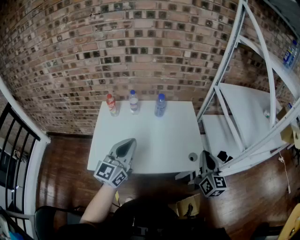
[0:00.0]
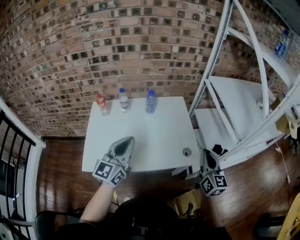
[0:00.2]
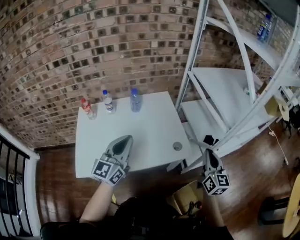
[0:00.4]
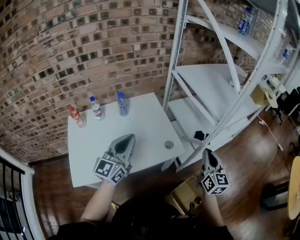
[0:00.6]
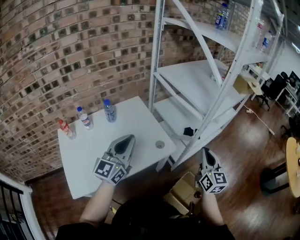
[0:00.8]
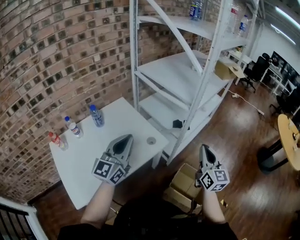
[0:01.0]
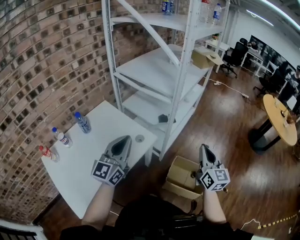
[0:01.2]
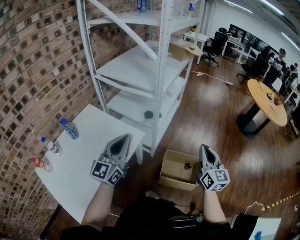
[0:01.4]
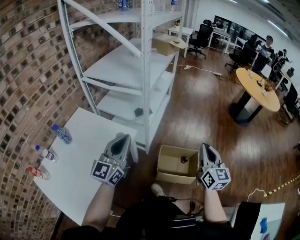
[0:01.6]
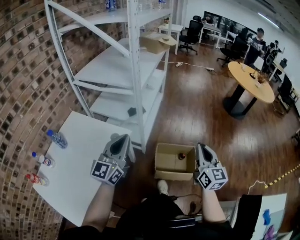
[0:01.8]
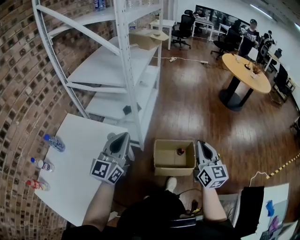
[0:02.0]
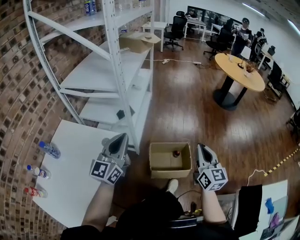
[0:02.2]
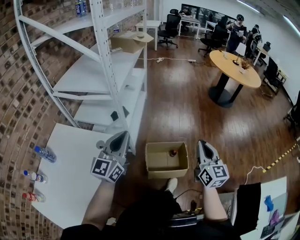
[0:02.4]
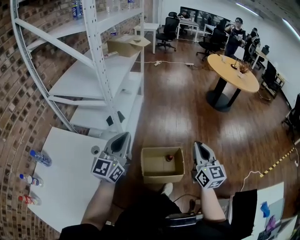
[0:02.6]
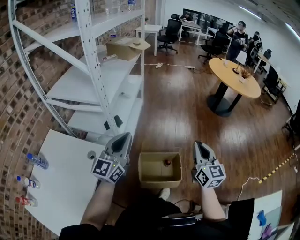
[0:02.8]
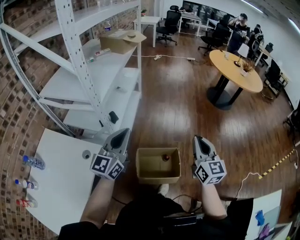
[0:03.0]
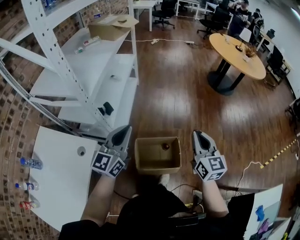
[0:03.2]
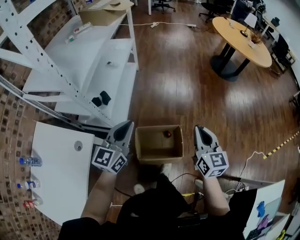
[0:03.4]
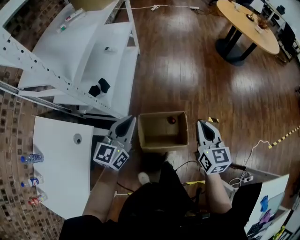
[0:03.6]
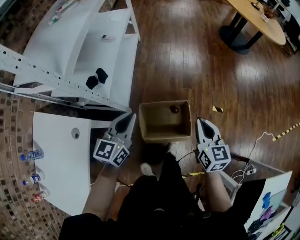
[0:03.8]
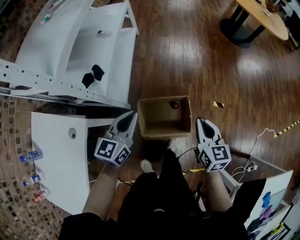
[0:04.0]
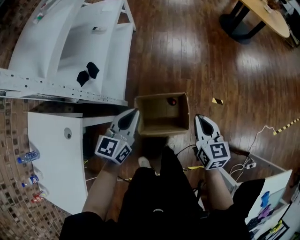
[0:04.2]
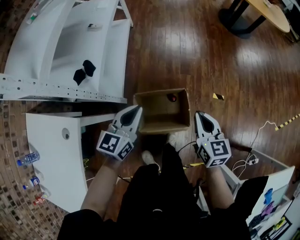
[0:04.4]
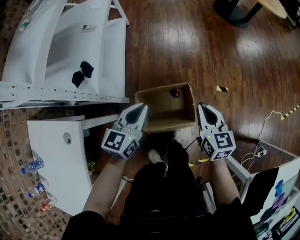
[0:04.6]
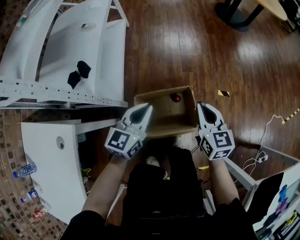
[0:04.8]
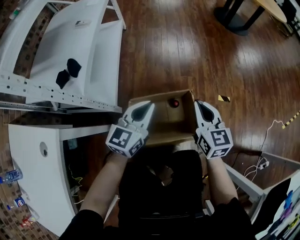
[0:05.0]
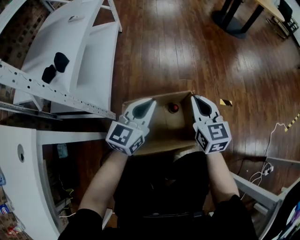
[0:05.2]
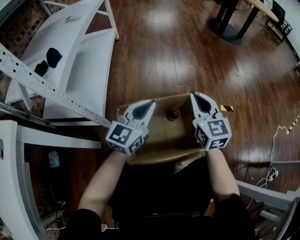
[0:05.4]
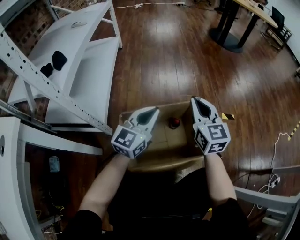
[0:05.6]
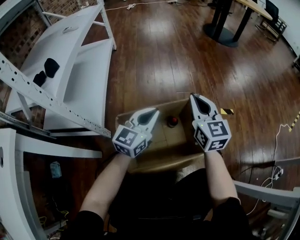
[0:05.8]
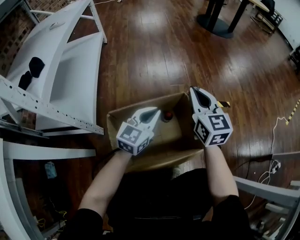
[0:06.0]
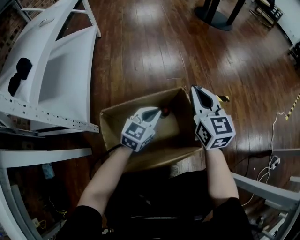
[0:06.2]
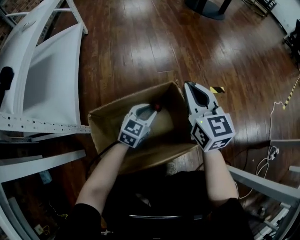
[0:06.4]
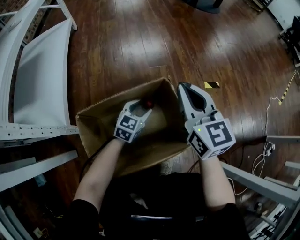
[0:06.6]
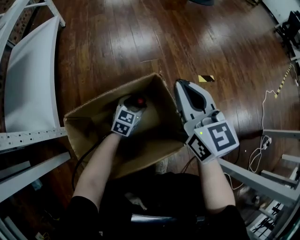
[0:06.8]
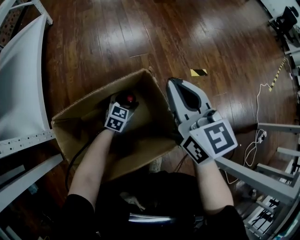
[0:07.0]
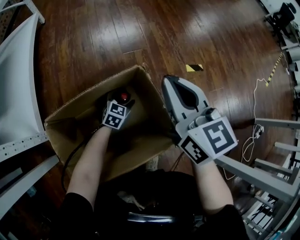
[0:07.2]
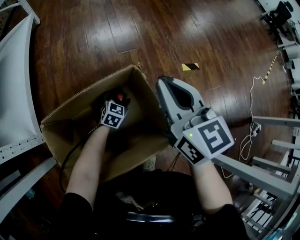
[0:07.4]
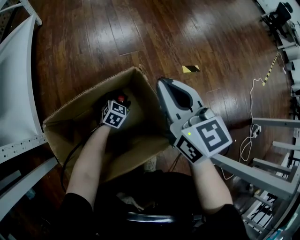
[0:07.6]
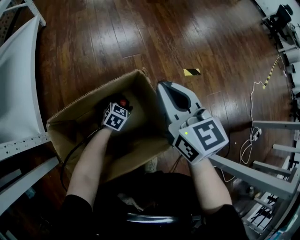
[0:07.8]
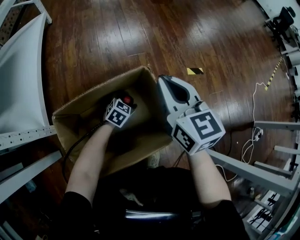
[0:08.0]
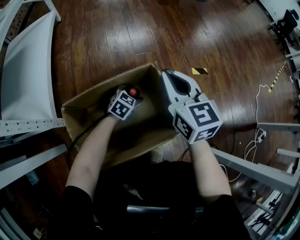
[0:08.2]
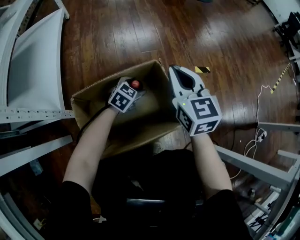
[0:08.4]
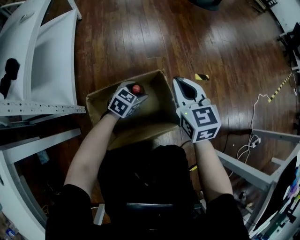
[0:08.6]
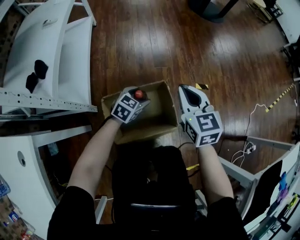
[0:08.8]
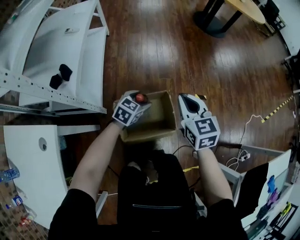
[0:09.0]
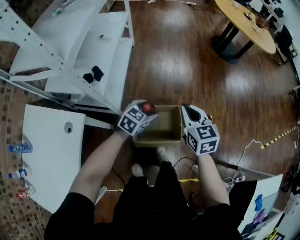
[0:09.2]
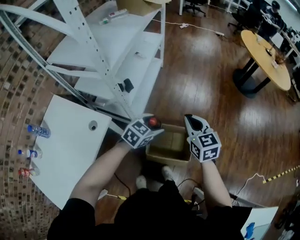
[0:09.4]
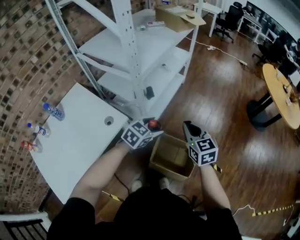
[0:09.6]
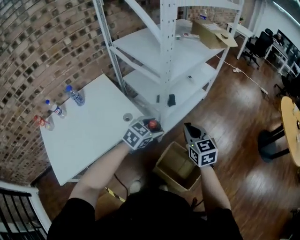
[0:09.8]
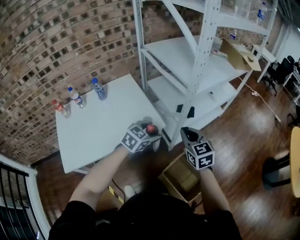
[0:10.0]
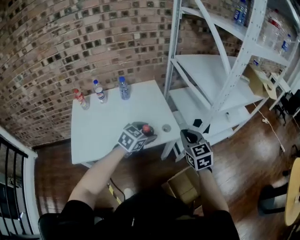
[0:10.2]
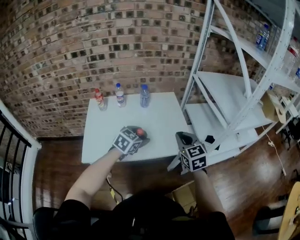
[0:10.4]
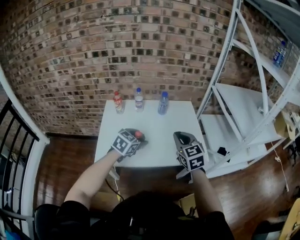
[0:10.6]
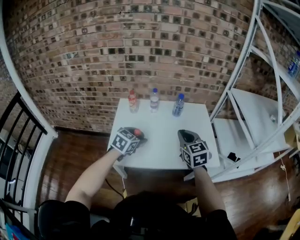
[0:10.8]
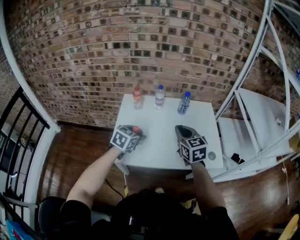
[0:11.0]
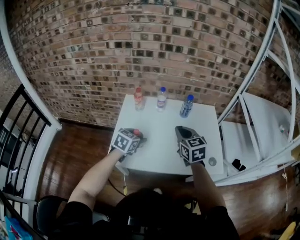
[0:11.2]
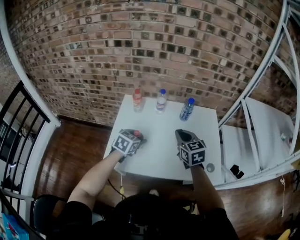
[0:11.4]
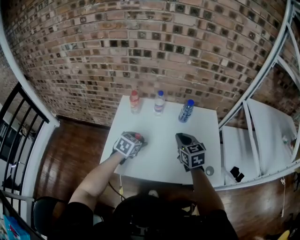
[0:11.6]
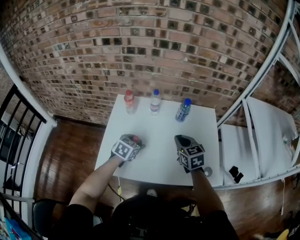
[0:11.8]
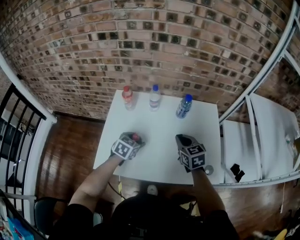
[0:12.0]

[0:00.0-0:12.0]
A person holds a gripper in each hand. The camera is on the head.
0:00.0 to 0:01.6: The left gripper ends up about 30 cm from where it was, and swivels some 60 degrees; the right gripper changes place by approximately 40 cm, and changes its angle by some 60 degrees.
0:01.6 to 0:03.0: The left gripper goes some 25 cm forward and to the right; the right gripper is displaced to the right and forward by about 20 cm.
0:03.0 to 0:04.4: The right gripper shifts some 25 cm downward, and changes its angle by approximately 30 degrees, while the left gripper goes roughly 30 cm downward and to the right, and rotates approximately 30 degrees.
0:04.4 to 0:06.0: Both grippers move downward, about 35 cm. The left gripper rotates roughly 20 degrees; the right gripper changes its angle by approximately 20 degrees.
0:06.0 to 0:07.6: The right gripper travels downward and to the right by about 10 cm, while the left gripper travels downward by approximately 35 cm, points its fingers about 30 degrees further downward, and opens up.
0:07.6 to 0:09.0: The left gripper is displaced upward by approximately 50 cm. Meanwhile the right gripper is displaced upward by roughly 35 cm.
0:09.0 to 0:10.4: The two grippers travel together, approximately 60 cm. The left gripper turns by about 80 degrees, while the right gripper swivels roughly 90 degrees.
0:10.4 to 0:12.0: The left gripper is displaced to the left, forward and downward by about 30 cm, and turns by some 30 degrees. Meanwhile the right gripper moves forward, to the left and downward, approximately 30 cm, and swivels about 20 degrees.

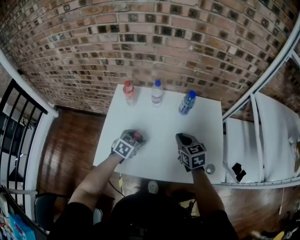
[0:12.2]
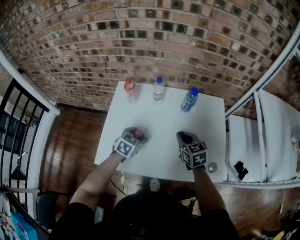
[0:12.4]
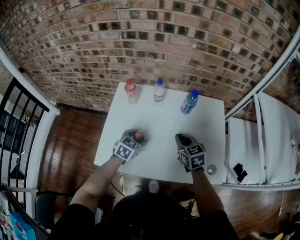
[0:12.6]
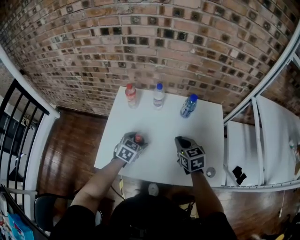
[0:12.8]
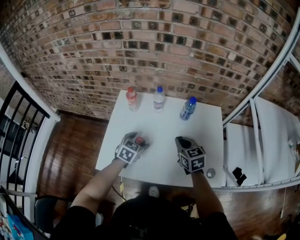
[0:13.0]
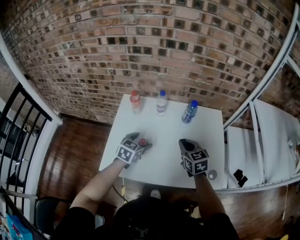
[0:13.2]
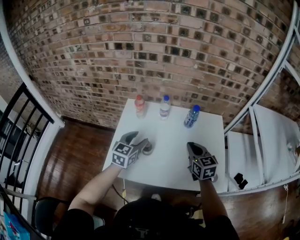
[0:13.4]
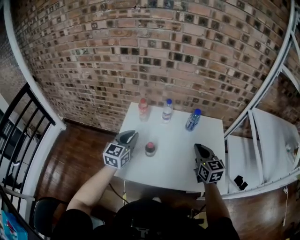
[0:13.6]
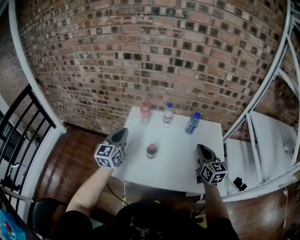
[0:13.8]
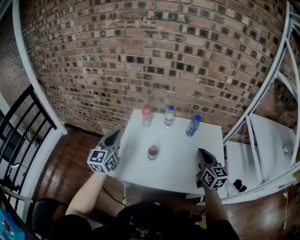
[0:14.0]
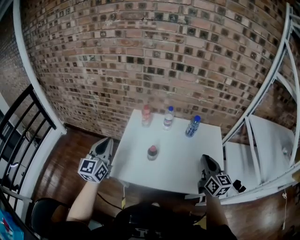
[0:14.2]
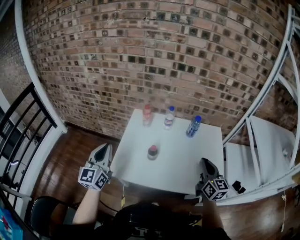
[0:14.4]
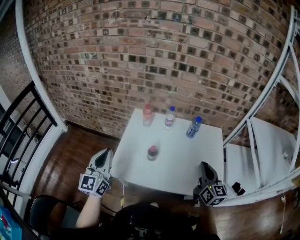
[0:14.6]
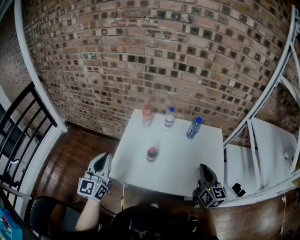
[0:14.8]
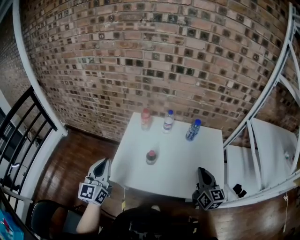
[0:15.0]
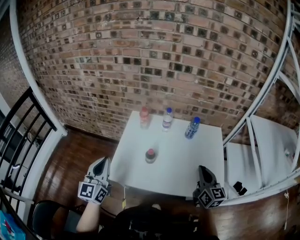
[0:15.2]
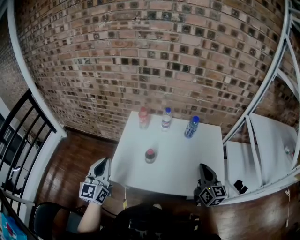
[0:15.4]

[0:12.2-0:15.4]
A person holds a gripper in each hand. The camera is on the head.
0:12.2 to 0:13.8: The left gripper shifts approximately 30 cm upward and to the left, tips its fingers upward by some 40 degrees, and closes up; the right gripper is displaced upward and backward by about 15 cm, and turns by about 20 degrees.
0:13.8 to 0:15.4: The right gripper is displaced backward by about 5 cm, while the left gripper moves backward, some 15 cm.

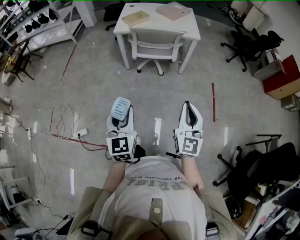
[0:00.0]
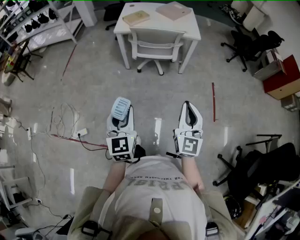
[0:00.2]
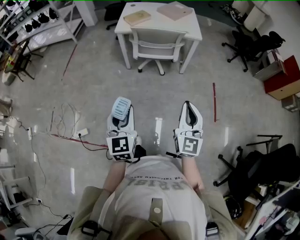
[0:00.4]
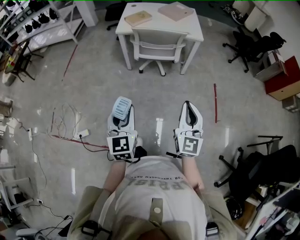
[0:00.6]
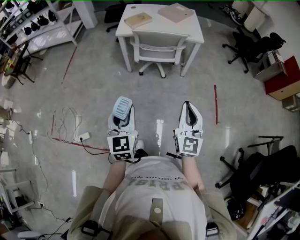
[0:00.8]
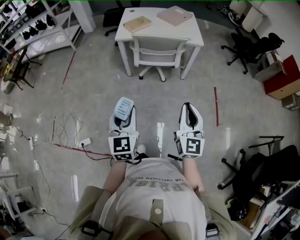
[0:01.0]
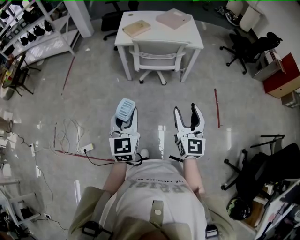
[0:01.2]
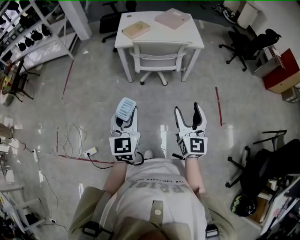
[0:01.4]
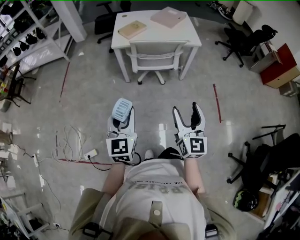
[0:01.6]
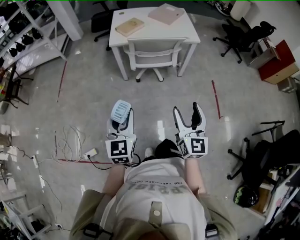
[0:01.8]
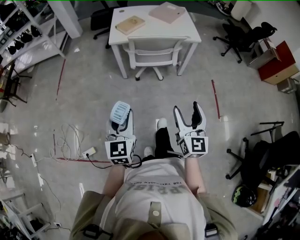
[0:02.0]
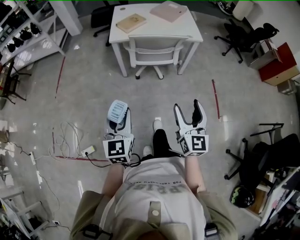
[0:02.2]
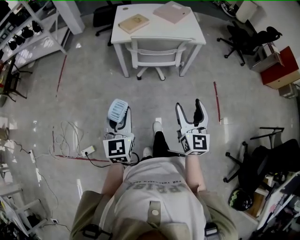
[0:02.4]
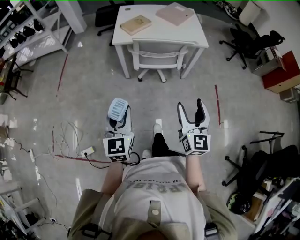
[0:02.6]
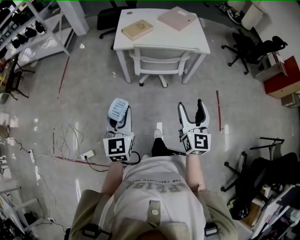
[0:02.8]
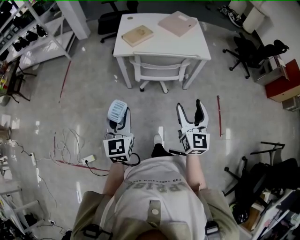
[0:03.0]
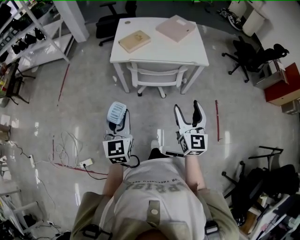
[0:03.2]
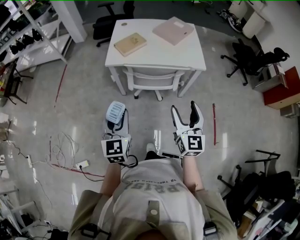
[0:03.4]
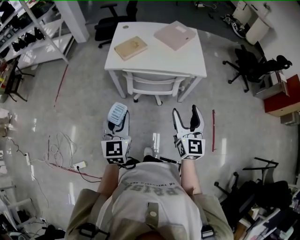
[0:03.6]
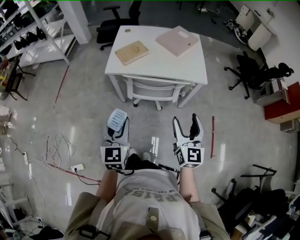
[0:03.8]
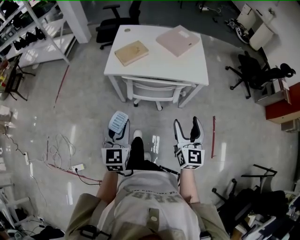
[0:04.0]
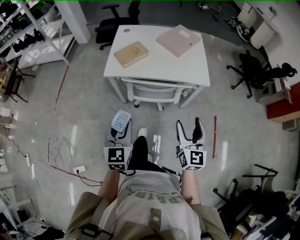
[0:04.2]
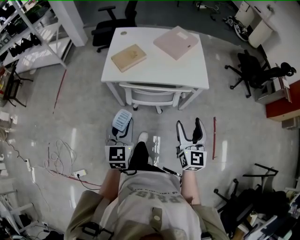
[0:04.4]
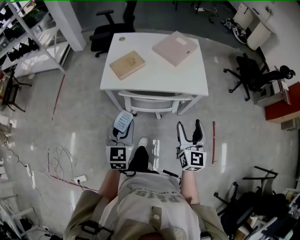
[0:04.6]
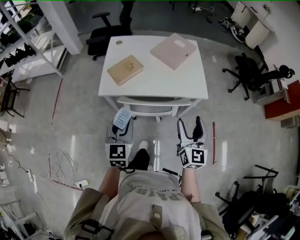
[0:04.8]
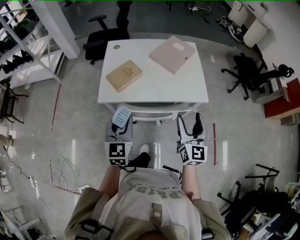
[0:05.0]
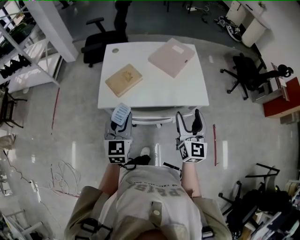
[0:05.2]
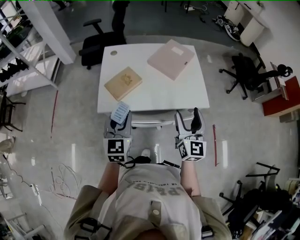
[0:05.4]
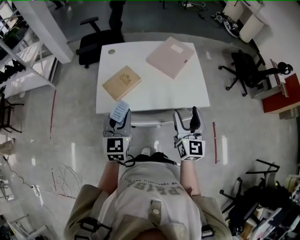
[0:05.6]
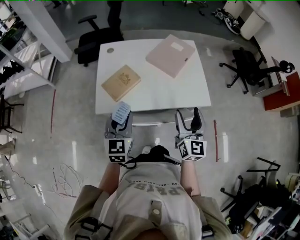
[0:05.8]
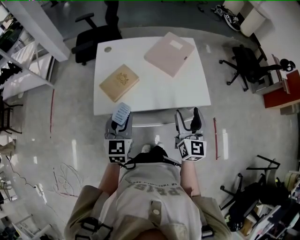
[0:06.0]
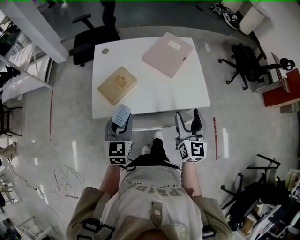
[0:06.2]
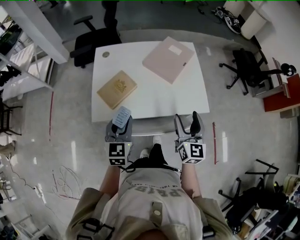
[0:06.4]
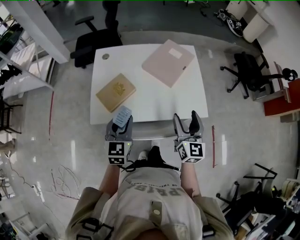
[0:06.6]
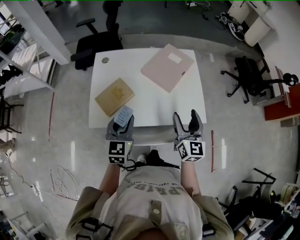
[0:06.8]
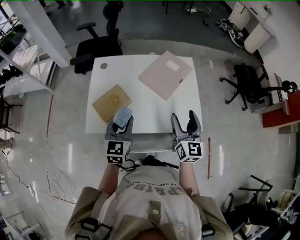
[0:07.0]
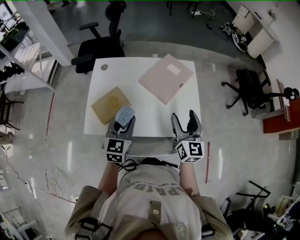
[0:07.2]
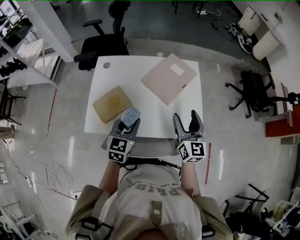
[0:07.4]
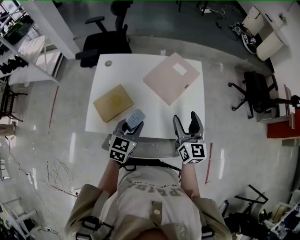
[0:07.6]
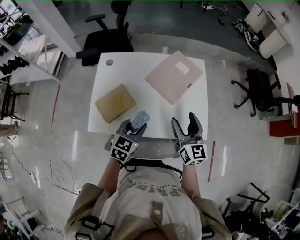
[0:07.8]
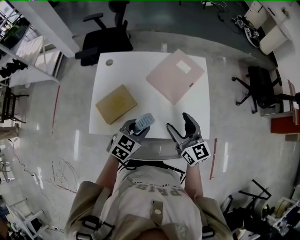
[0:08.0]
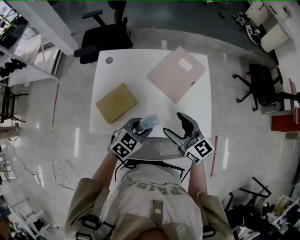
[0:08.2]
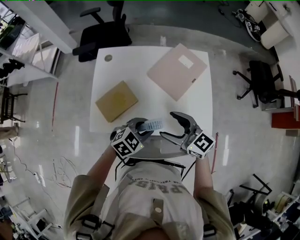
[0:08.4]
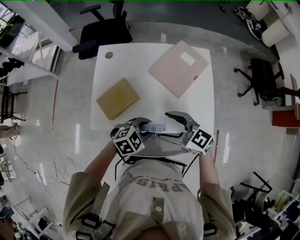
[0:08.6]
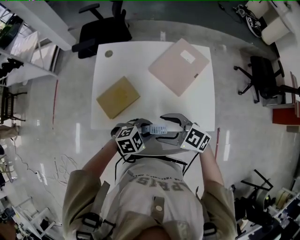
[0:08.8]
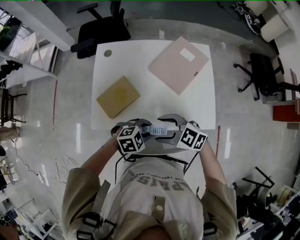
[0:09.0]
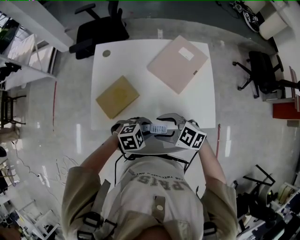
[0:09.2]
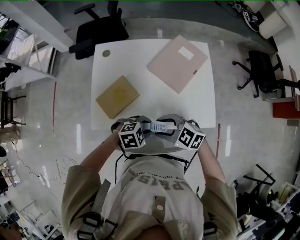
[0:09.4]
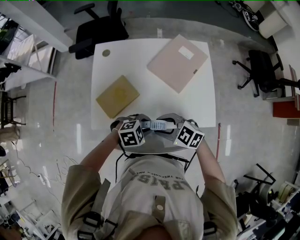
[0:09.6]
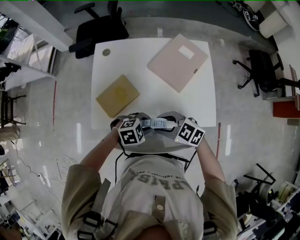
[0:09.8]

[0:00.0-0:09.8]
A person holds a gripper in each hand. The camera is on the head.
0:00.0 to 0:01.4: Both grippers move forward and to the left, about 15 cm. The right gripper opens up.
0:01.4 to 0:02.8: Both grippers travel together forward, about 15 cm.
0:02.8 to 0:04.2: Both grippers travel together forward and to the right, approximately 25 cm.
0:04.2 to 0:05.6: The grippers both shift forward by some 25 cm.
0:05.6 to 0:07.0: The right gripper is displaced forward by roughly 15 cm, while the left gripper is displaced forward and to the right by roughly 15 cm.
0:07.0 to 0:08.4: The left gripper moves downward and to the right, about 15 cm, and swivels approximately 50 degrees. Meanwhile the right gripper moves to the left, approximately 10 cm, and changes its angle by approximately 50 degrees.
0:08.4 to 0:09.8: Both grippers move downward, about 5 cm. The right gripper rotates approximately 30 degrees, and closes its fingers, while the left gripper rotates approximately 20 degrees.
